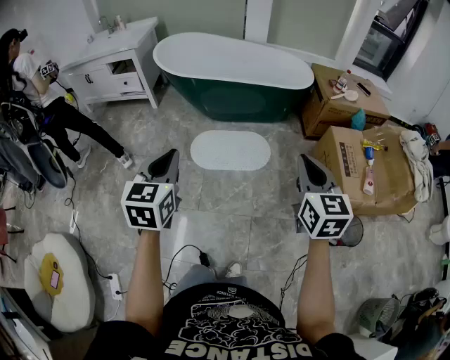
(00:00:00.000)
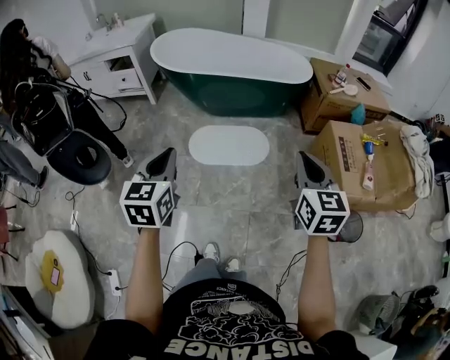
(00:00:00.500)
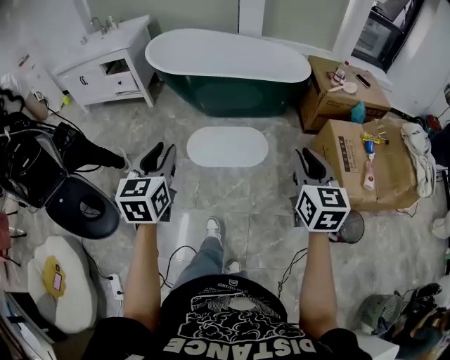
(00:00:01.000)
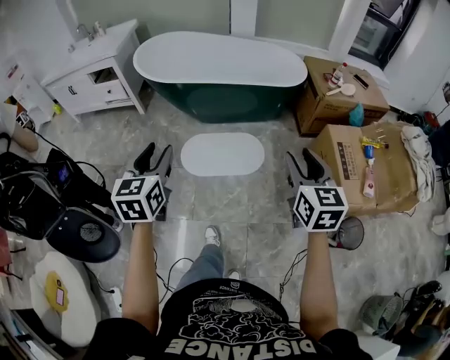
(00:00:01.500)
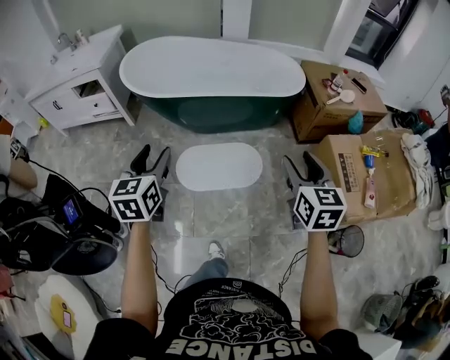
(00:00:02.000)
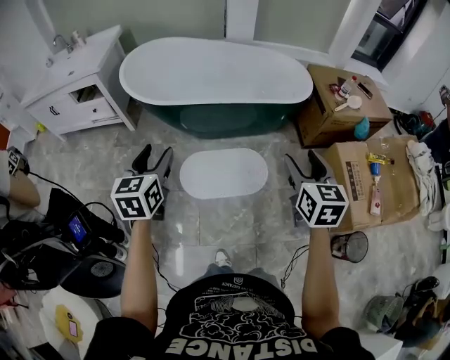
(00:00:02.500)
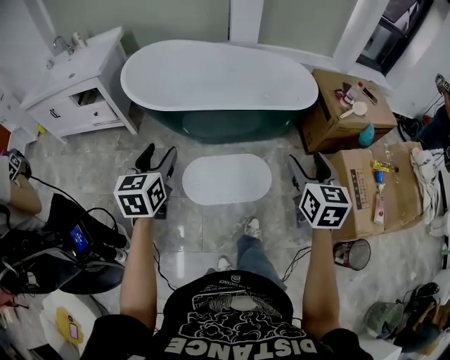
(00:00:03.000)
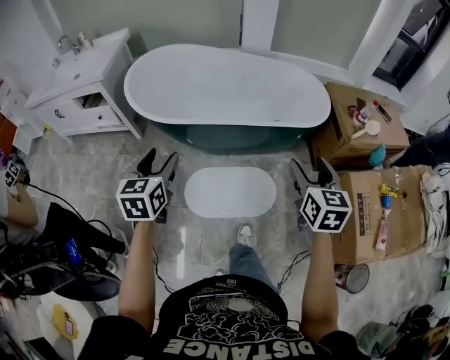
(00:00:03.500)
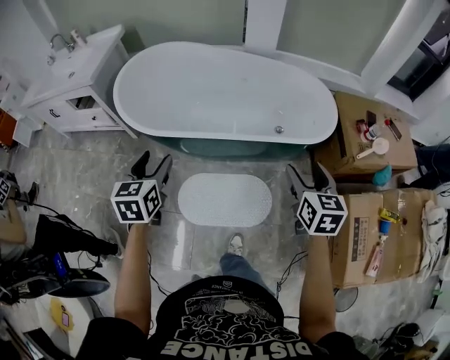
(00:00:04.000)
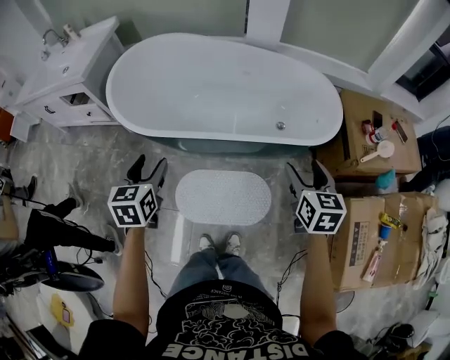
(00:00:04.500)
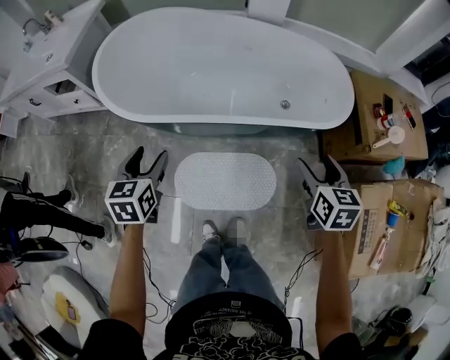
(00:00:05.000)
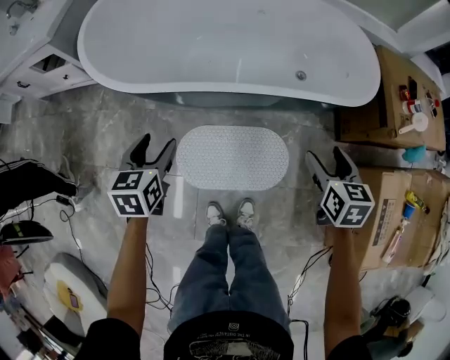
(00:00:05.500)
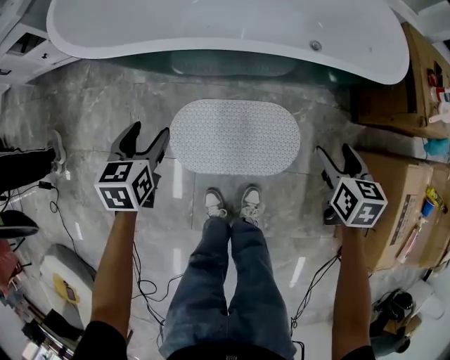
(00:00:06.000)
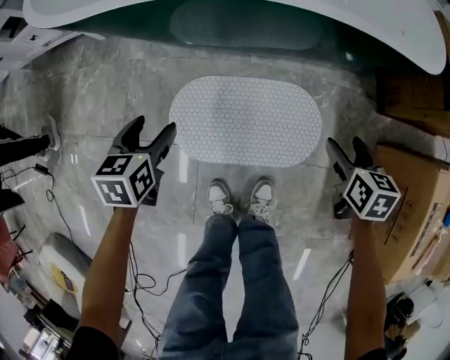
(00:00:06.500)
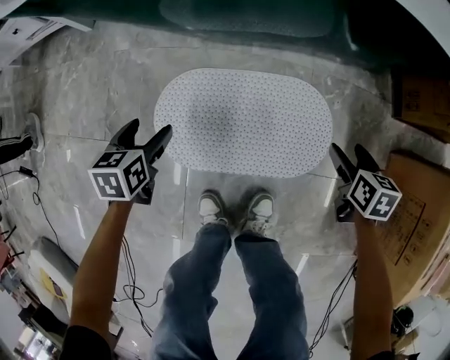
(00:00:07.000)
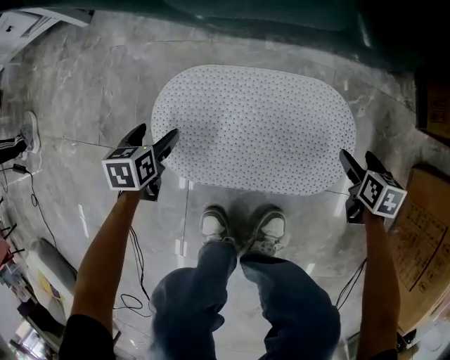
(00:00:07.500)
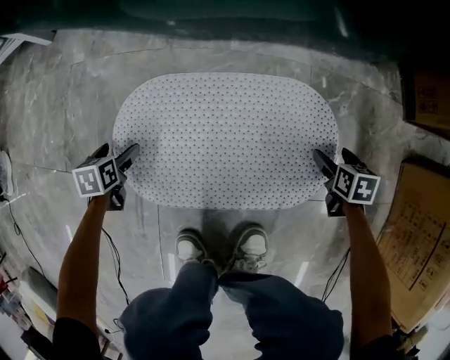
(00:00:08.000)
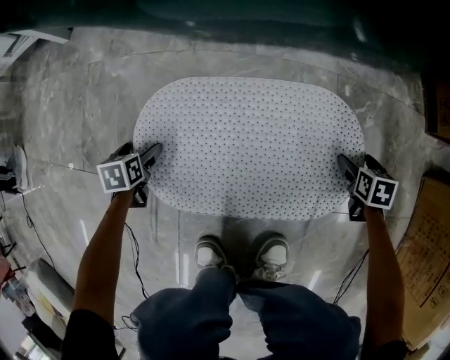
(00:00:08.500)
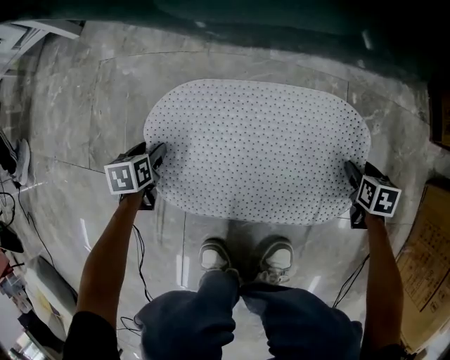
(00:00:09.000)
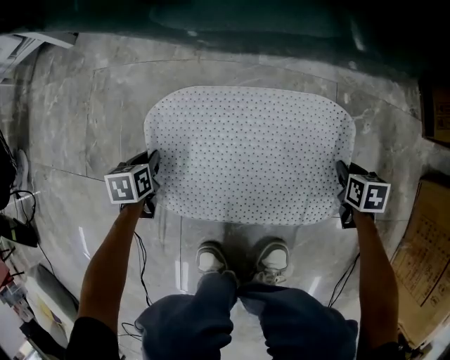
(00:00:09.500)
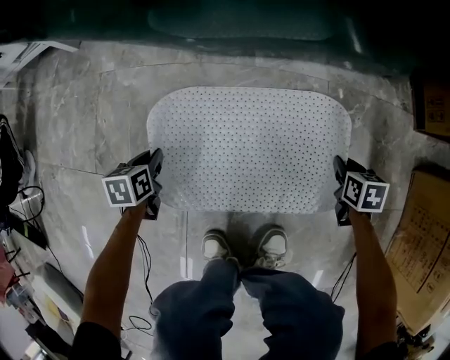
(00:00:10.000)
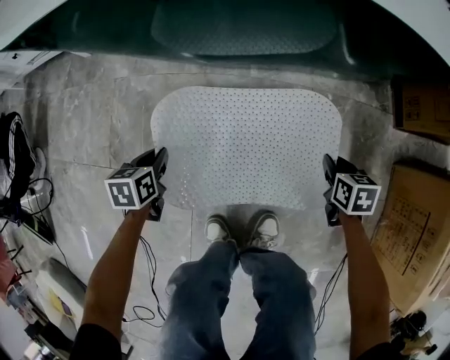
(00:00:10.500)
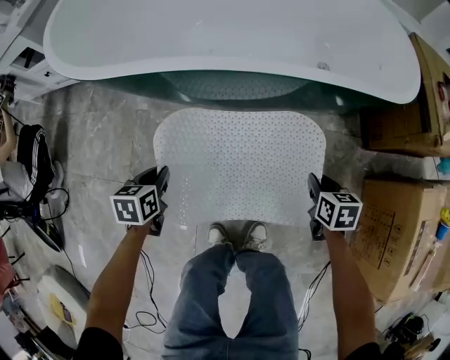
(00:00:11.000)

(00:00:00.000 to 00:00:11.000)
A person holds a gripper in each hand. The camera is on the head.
00:00:00.000 - 00:00:02.000: Both grippers travel together forward, roughly 25 cm. The left gripper opens, while the right gripper opens up.
00:00:02.000 - 00:00:03.500: The two grippers go roughly 20 cm forward.
00:00:03.500 - 00:00:05.500: The two grippers go roughly 30 cm downward and forward. The right gripper swivels approximately 20 degrees.
00:00:05.500 - 00:00:07.500: Both grippers move downward, roughly 60 cm.
00:00:07.500 - 00:00:09.000: The right gripper heads downward, covering about 10 cm, and closes its fingers. Meanwhile the left gripper travels downward and to the left by about 15 cm.
00:00:09.000 - 00:00:11.000: The grippers both shift upward by some 40 cm. The right gripper closes its fingers, while the left gripper closes up.

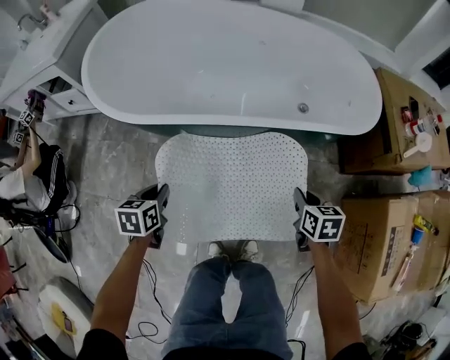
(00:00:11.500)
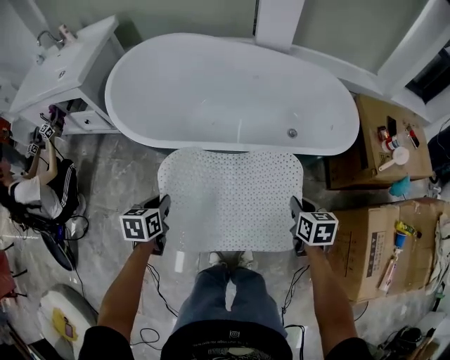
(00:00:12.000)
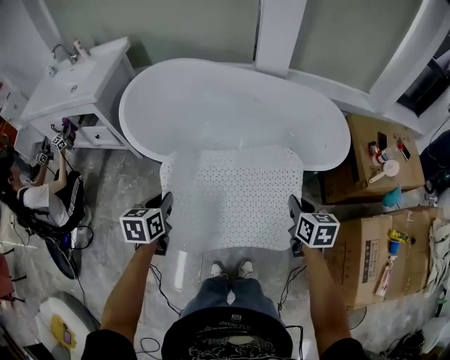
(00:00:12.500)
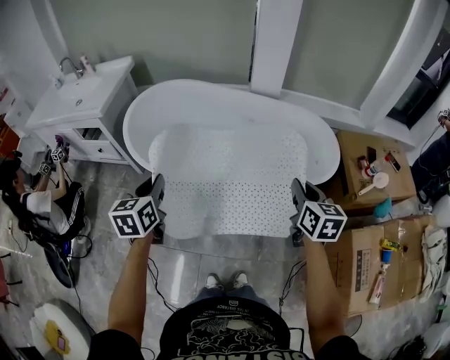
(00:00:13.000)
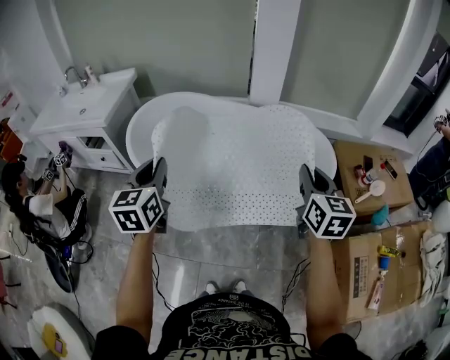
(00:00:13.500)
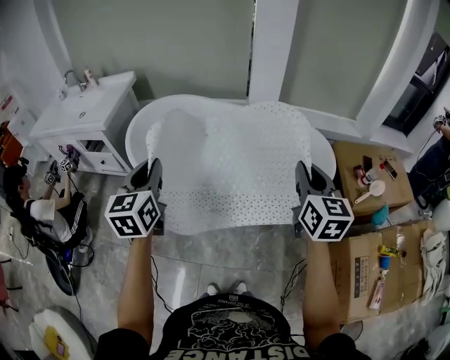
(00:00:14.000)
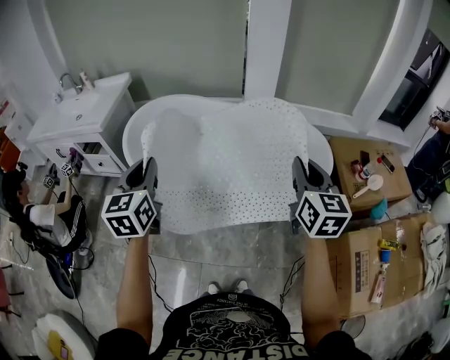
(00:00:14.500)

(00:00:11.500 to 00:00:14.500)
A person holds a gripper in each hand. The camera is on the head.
00:00:11.500 - 00:00:13.000: The two grippers go roughly 40 cm upward. The right gripper changes its angle by approximately 30 degrees, while the left gripper turns by roughly 30 degrees.
00:00:13.000 - 00:00:14.500: The grippers both shift upward by approximately 15 cm.

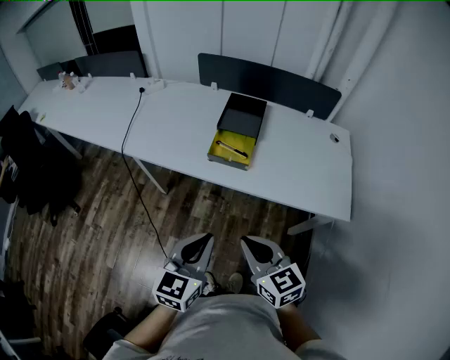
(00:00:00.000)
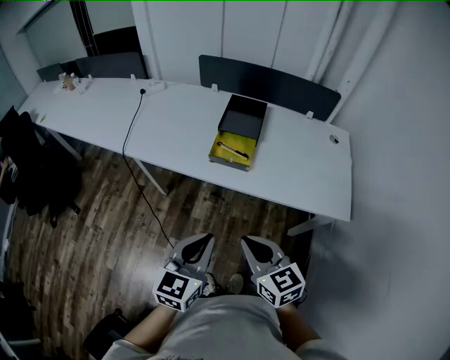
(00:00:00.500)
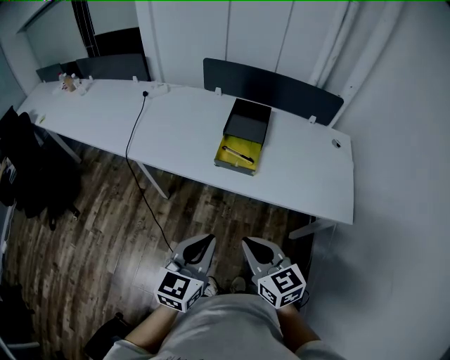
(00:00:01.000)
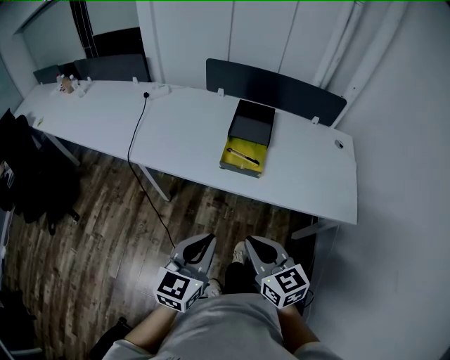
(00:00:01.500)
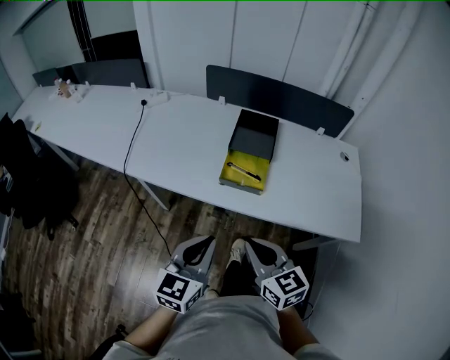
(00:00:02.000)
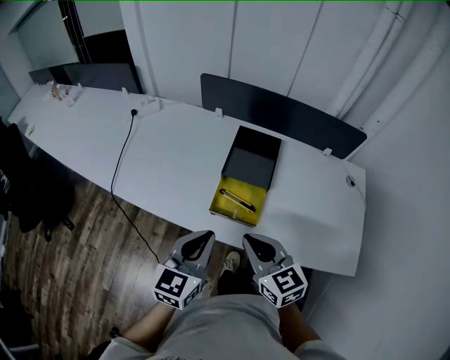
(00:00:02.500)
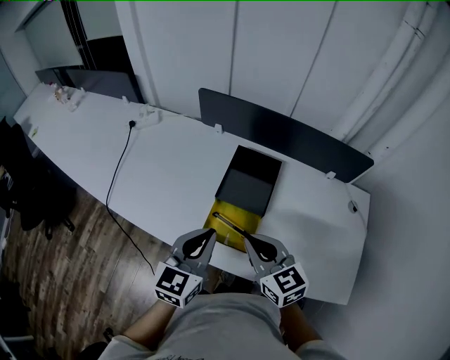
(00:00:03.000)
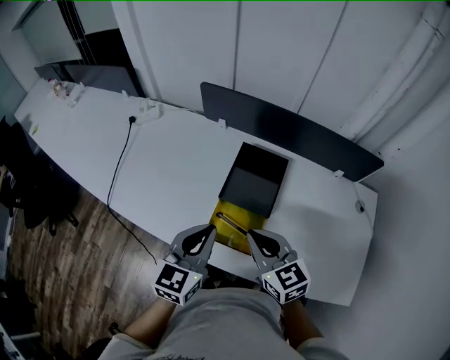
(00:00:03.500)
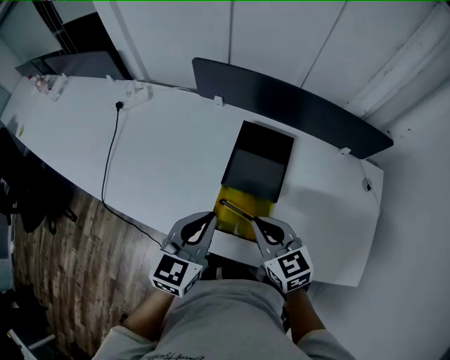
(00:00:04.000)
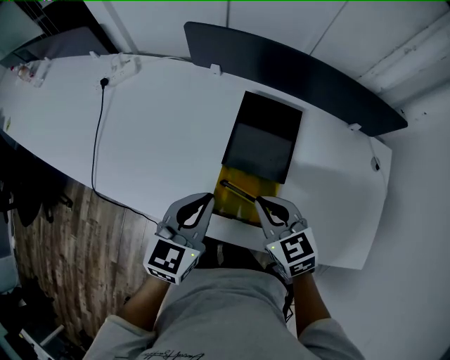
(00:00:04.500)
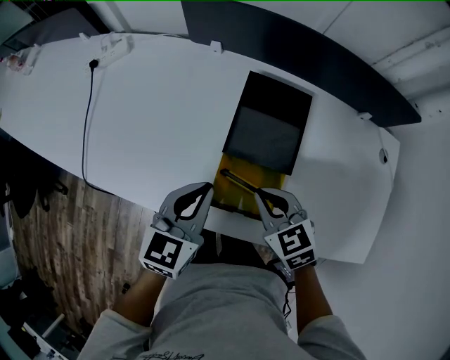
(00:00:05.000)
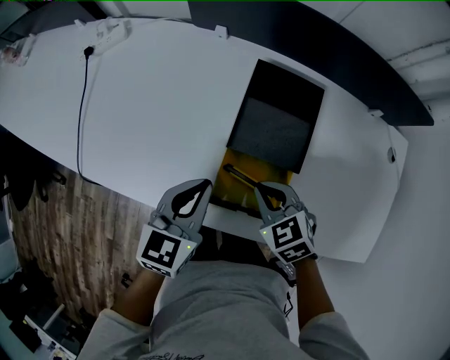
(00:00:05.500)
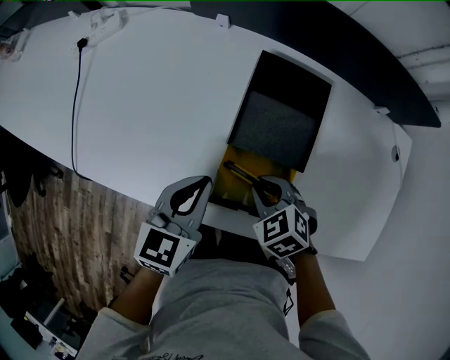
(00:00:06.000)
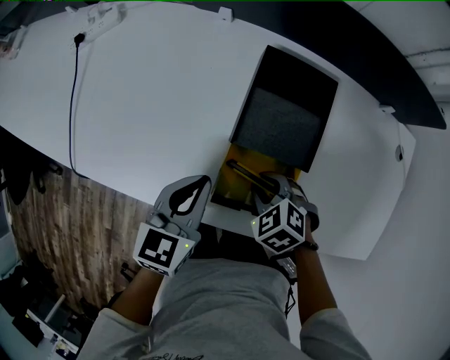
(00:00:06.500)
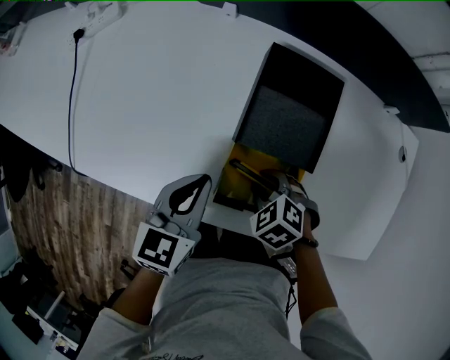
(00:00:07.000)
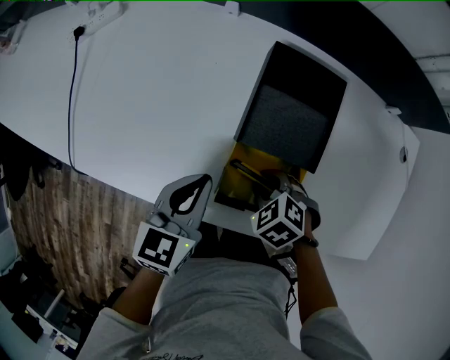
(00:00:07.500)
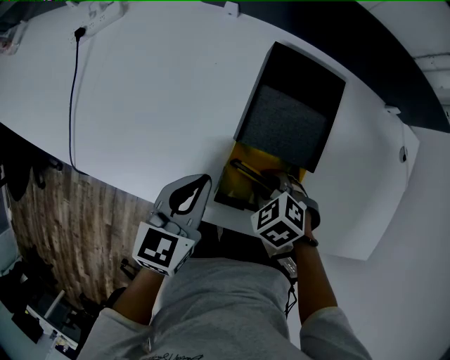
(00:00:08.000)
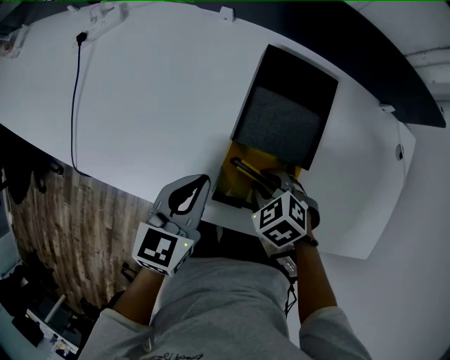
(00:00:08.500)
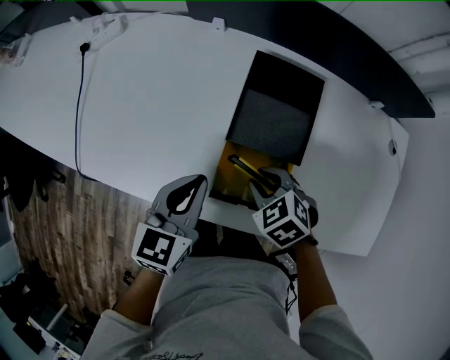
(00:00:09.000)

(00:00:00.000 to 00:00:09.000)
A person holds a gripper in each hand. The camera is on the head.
00:00:00.000 - 00:00:02.000: The right gripper moves forward, roughly 10 cm. Meanwhile the left gripper travels forward and to the left by about 10 cm.
00:00:02.000 - 00:00:04.500: Both grippers travel together forward, approximately 30 cm. The right gripper swivels about 20 degrees.
00:00:04.500 - 00:00:07.000: The left gripper goes roughly 10 cm downward, while the right gripper travels downward by about 15 cm, tilts its fingers some 40 degrees downward, and opens its fingers.
00:00:07.000 - 00:00:09.000: The right gripper heads upward, covering approximately 5 cm.

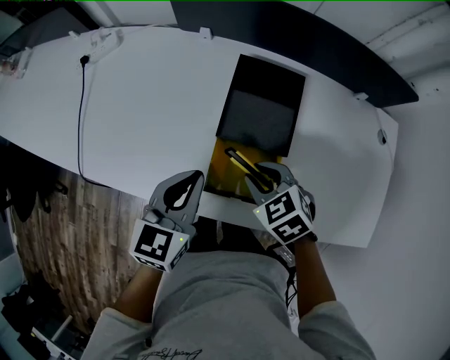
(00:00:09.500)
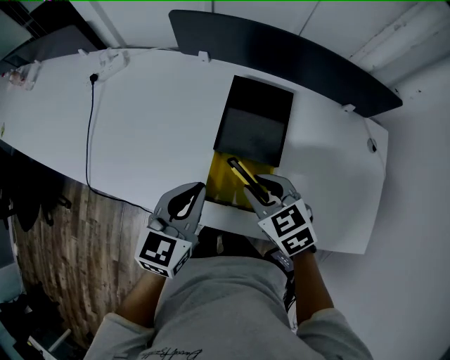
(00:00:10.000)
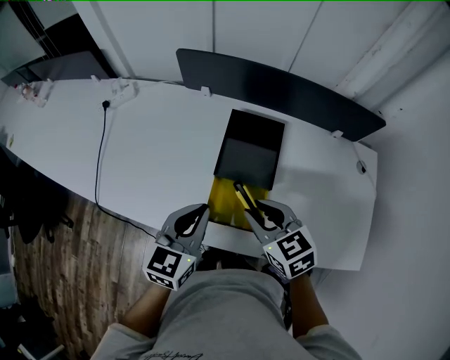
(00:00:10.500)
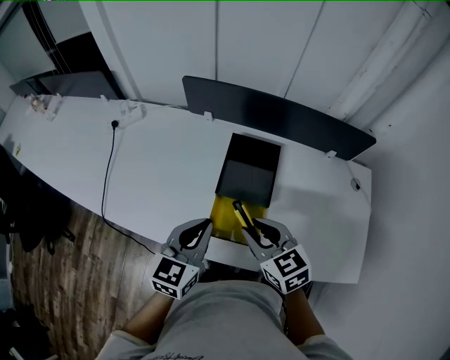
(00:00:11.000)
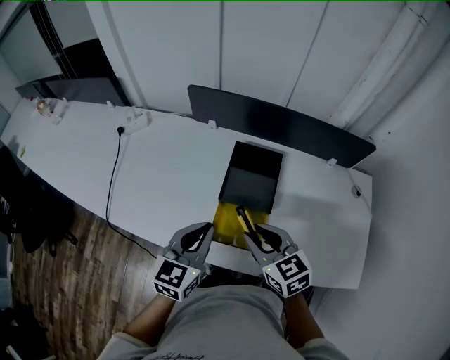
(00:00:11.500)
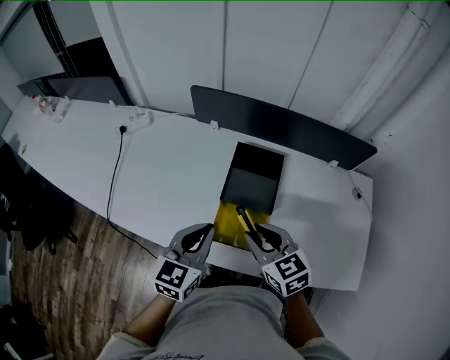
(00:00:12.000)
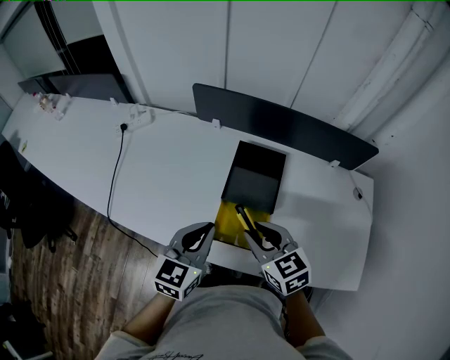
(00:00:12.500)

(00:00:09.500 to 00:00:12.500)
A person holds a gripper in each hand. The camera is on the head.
00:00:09.500 - 00:00:11.000: The right gripper shifts approximately 15 cm upward, and changes its angle by about 30 degrees; the left gripper travels upward by roughly 5 cm.
00:00:11.000 - 00:00:12.500: Neither gripper changes place.
